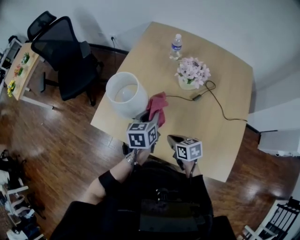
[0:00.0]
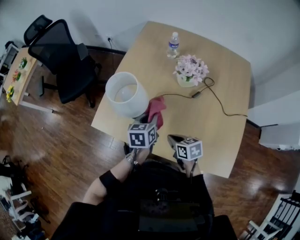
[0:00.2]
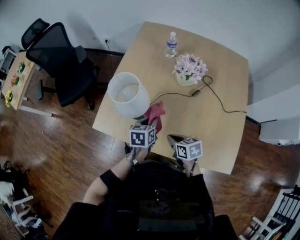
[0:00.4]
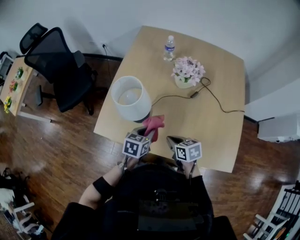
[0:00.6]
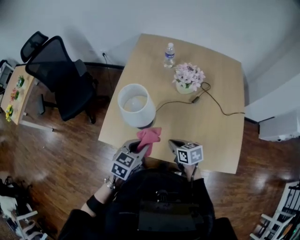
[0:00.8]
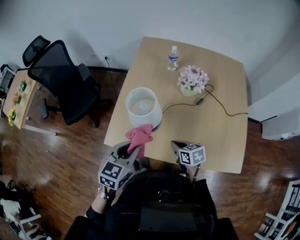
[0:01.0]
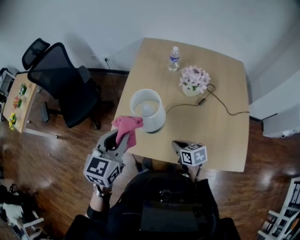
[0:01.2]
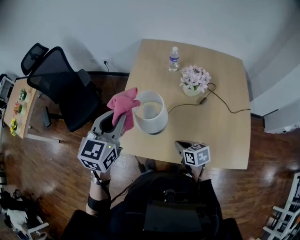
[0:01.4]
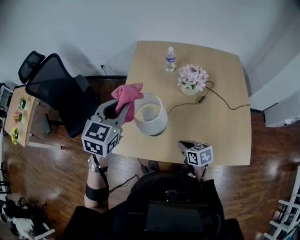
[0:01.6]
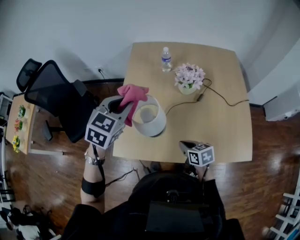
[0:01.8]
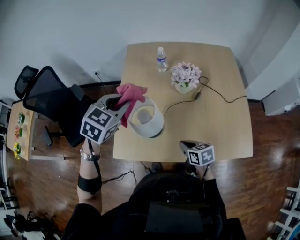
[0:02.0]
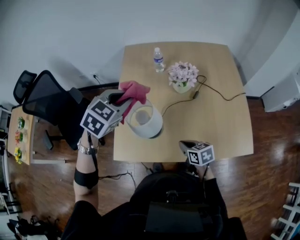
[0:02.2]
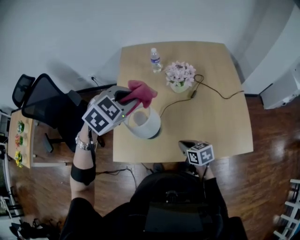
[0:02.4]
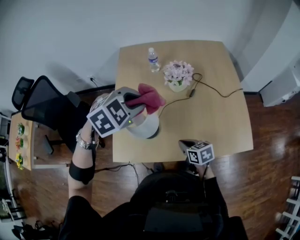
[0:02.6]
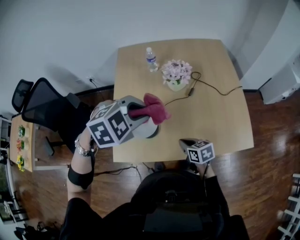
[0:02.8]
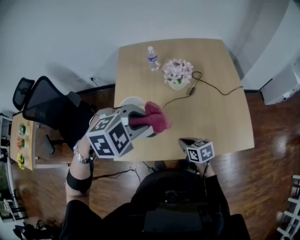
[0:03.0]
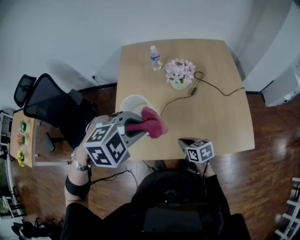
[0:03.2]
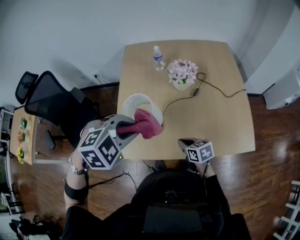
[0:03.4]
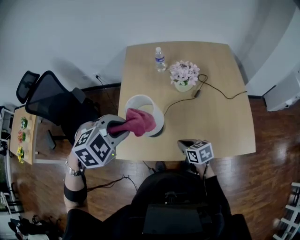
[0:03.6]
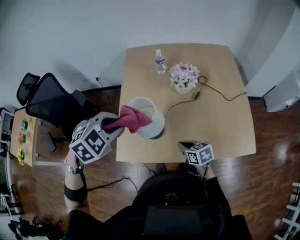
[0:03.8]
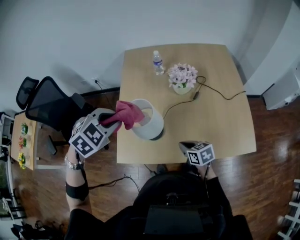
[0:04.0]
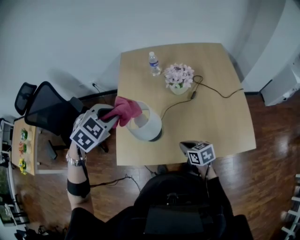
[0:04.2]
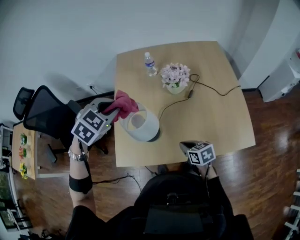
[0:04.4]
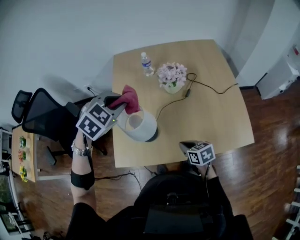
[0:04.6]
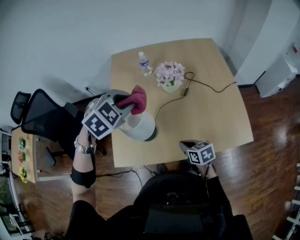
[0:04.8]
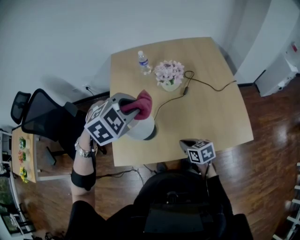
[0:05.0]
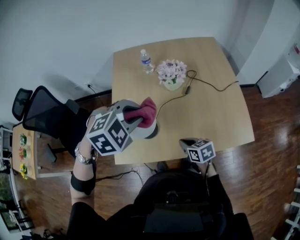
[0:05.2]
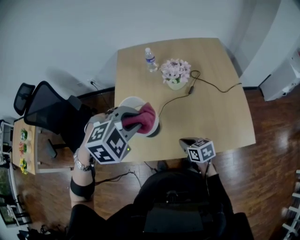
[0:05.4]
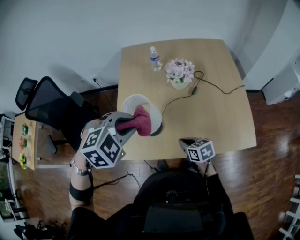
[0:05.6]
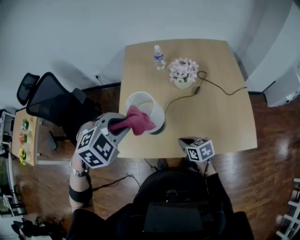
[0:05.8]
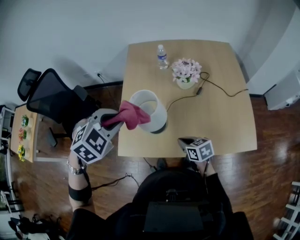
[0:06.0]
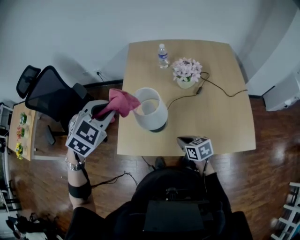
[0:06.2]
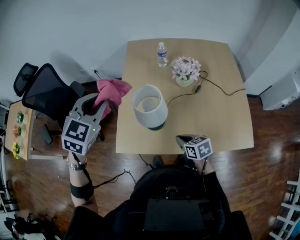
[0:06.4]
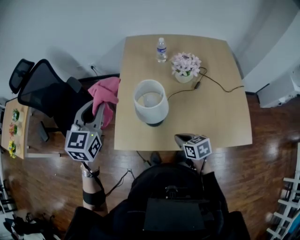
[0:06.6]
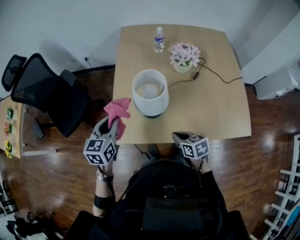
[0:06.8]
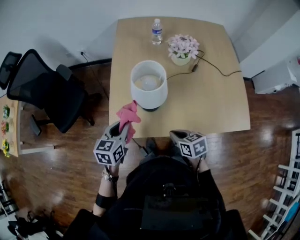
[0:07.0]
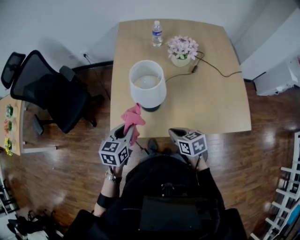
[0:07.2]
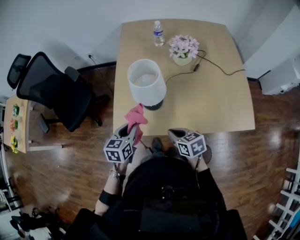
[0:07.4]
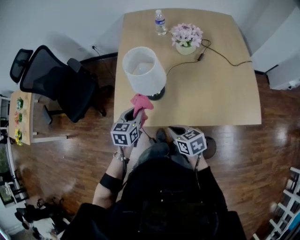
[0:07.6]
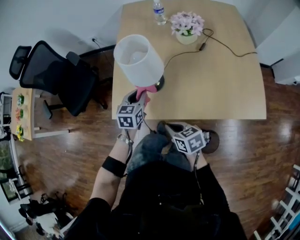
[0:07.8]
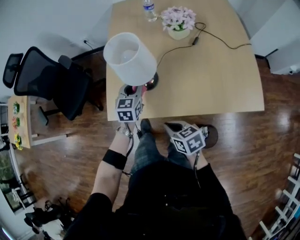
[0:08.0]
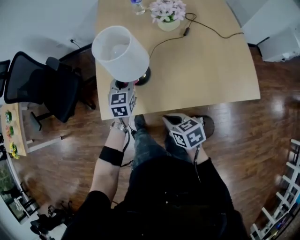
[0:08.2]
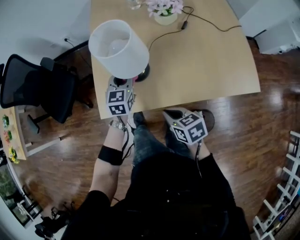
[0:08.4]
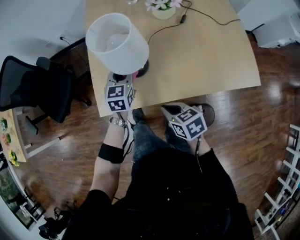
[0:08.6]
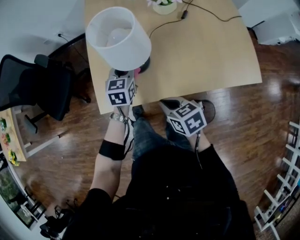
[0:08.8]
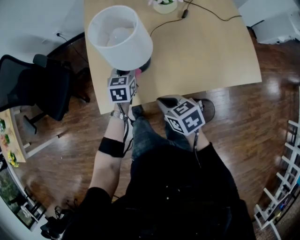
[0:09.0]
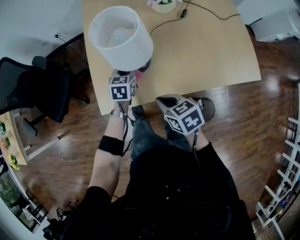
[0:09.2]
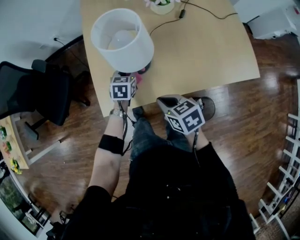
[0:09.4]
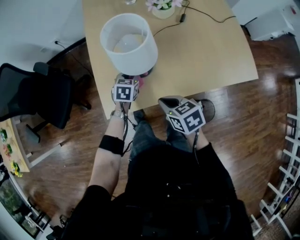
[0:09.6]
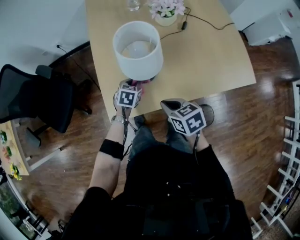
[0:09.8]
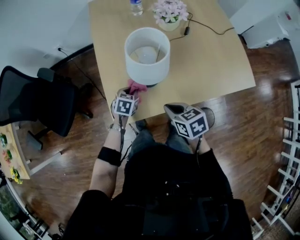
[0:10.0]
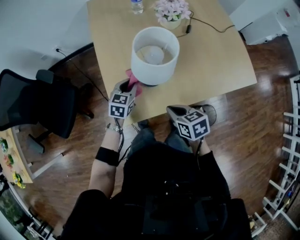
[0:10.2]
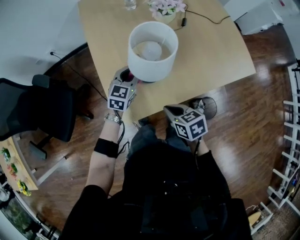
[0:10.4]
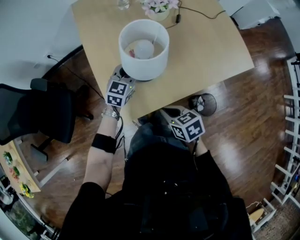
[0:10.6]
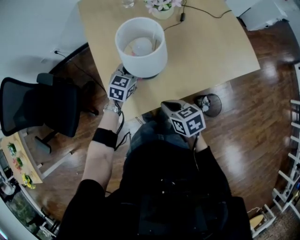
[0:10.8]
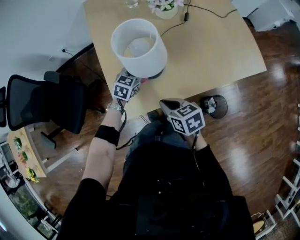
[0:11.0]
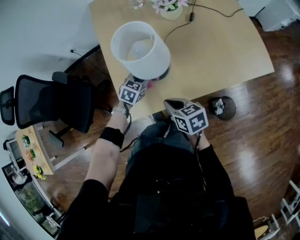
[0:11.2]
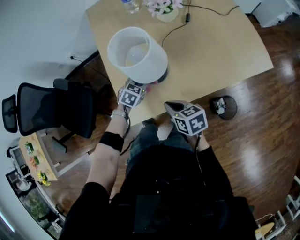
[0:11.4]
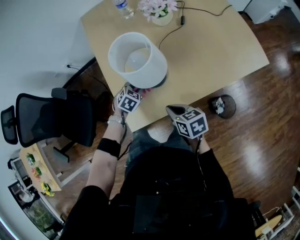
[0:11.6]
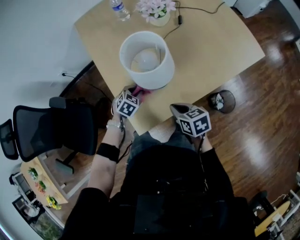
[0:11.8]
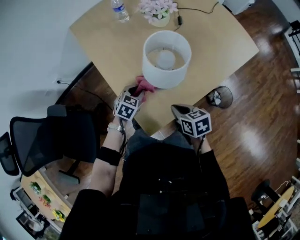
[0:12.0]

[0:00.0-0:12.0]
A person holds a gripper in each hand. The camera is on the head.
0:00.0 to 0:01.6: The left gripper moves upward and to the left, approximately 25 cm, and rotates around the line of its fingers by some 40 degrees, clockwise from behind. Meanwhile the right gripper travels to the left by approximately 5 cm.
0:01.6 to 0:03.0: The left gripper shifts about 15 cm to the right and backward, and tilts its fingers approximately 30 degrees downward.
0:03.0 to 0:04.4: The left gripper moves to the left and forward, roughly 15 cm, and turns by roughly 30 degrees.
0:04.4 to 0:06.0: The left gripper moves backward, approximately 10 cm, and reaches roughly 10 cm to the right, then returns.
0:06.0 to 0:07.6: The right gripper shifts some 10 cm backward and to the left, while the left gripper goes approximately 25 cm downward, and twists approximately 60 degrees counterclockwise, seen from behind.
0:07.6 to 0:09.0: The left gripper heads forward, downward and to the right, covering approximately 15 cm.
0:09.0 to 0:10.4: The left gripper rotates approximately 30 degrees, while the right gripper travels to the left by approximately 5 cm.
0:10.4 to 0:12.0: The right gripper travels to the left by some 5 cm, and swivels about 20 degrees; the left gripper heads downward and to the left, covering some 10 cm, and turns by roughly 30 degrees.

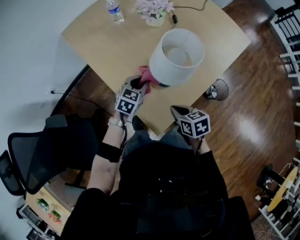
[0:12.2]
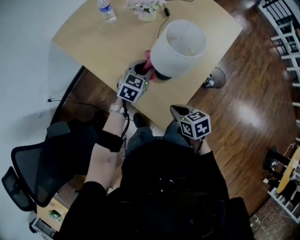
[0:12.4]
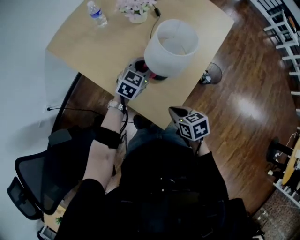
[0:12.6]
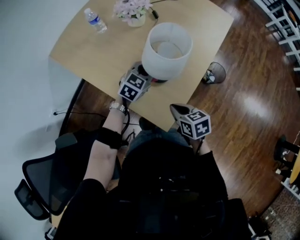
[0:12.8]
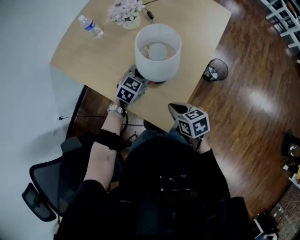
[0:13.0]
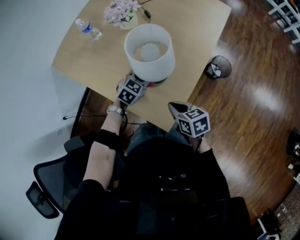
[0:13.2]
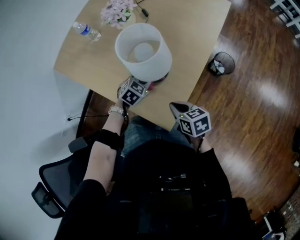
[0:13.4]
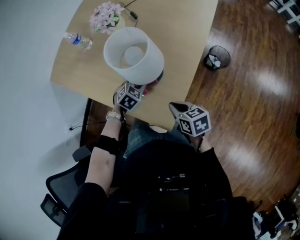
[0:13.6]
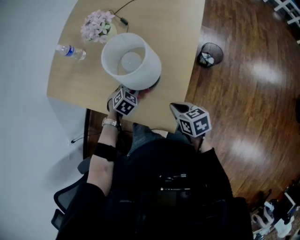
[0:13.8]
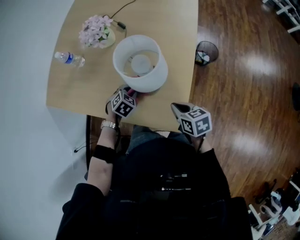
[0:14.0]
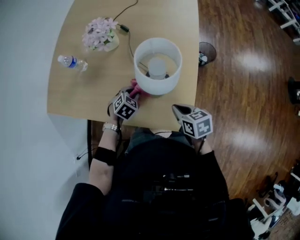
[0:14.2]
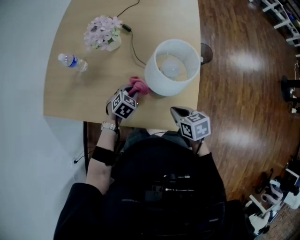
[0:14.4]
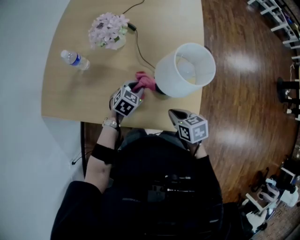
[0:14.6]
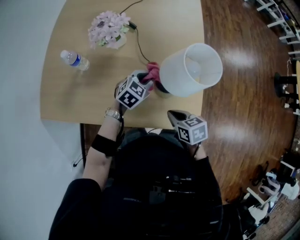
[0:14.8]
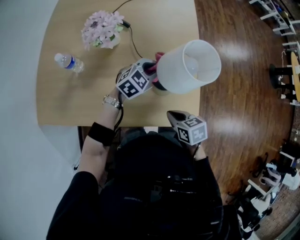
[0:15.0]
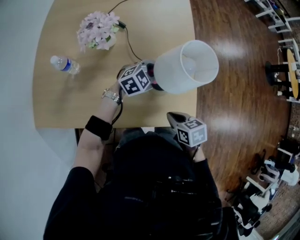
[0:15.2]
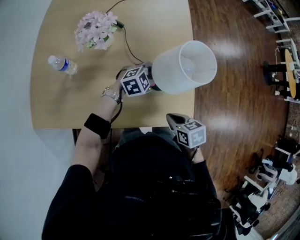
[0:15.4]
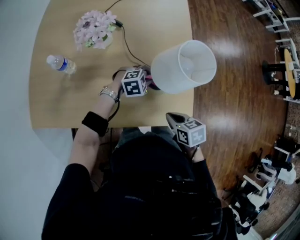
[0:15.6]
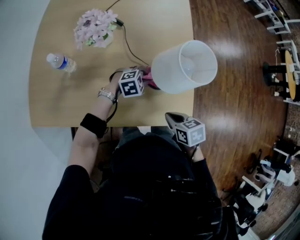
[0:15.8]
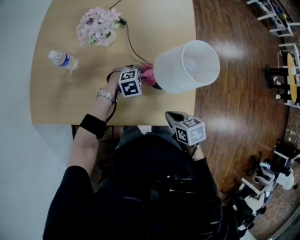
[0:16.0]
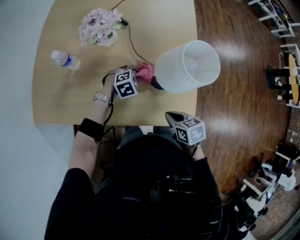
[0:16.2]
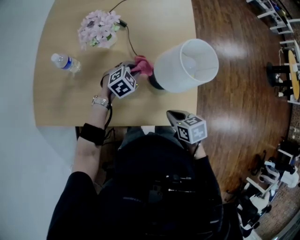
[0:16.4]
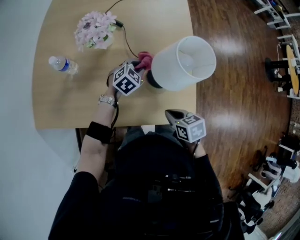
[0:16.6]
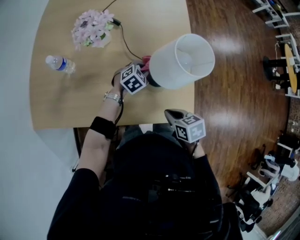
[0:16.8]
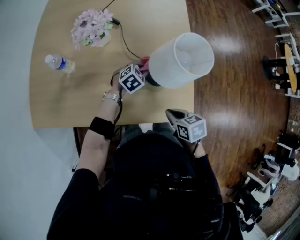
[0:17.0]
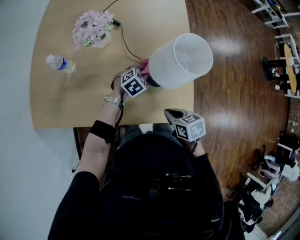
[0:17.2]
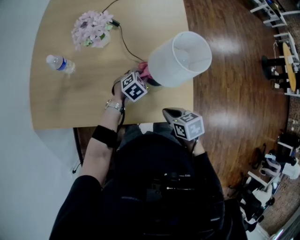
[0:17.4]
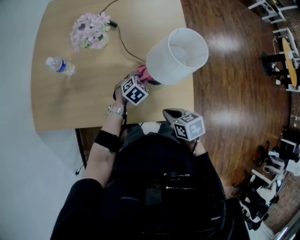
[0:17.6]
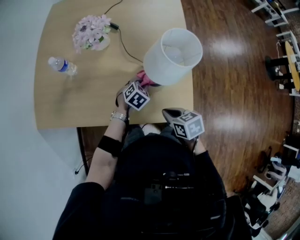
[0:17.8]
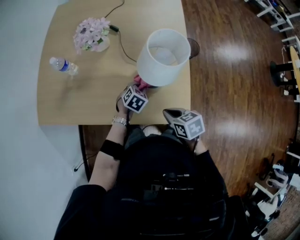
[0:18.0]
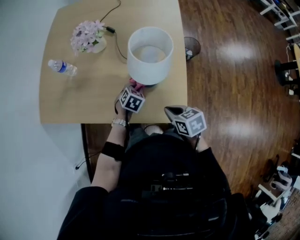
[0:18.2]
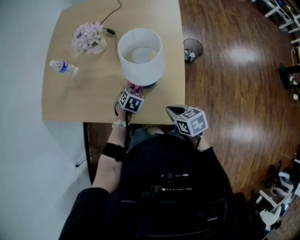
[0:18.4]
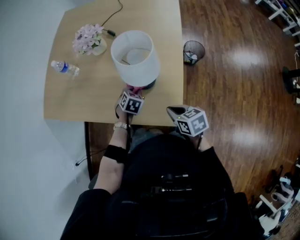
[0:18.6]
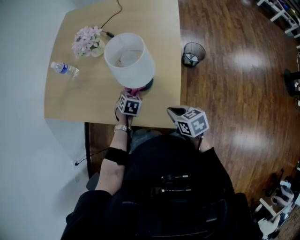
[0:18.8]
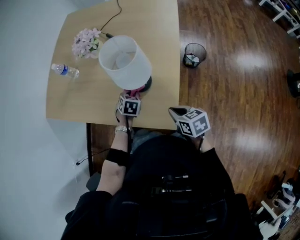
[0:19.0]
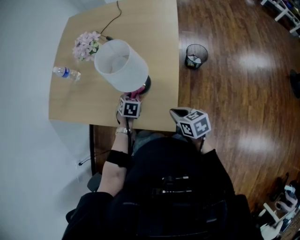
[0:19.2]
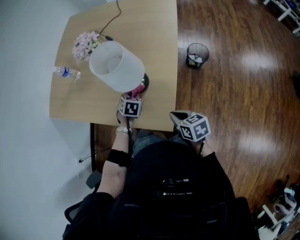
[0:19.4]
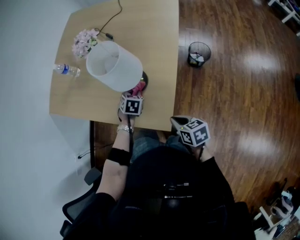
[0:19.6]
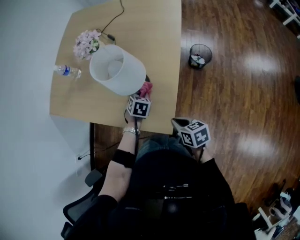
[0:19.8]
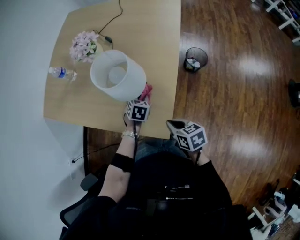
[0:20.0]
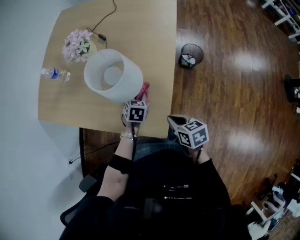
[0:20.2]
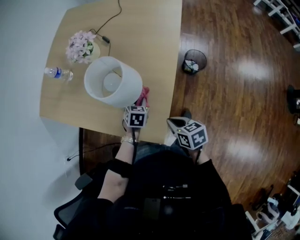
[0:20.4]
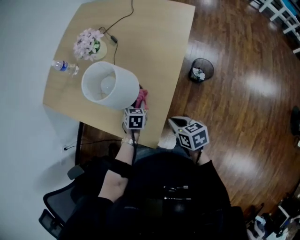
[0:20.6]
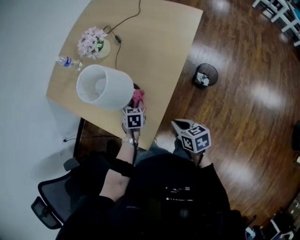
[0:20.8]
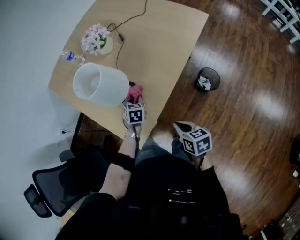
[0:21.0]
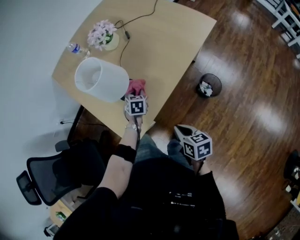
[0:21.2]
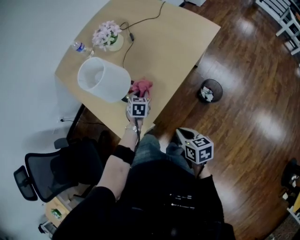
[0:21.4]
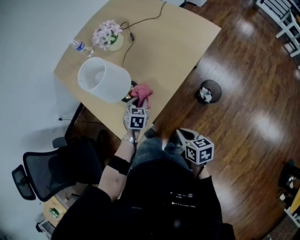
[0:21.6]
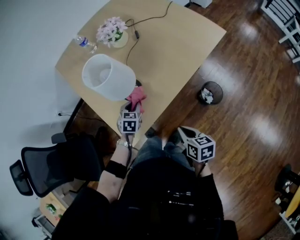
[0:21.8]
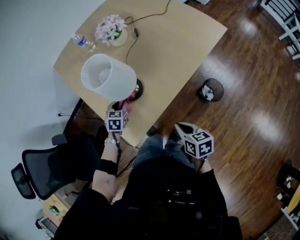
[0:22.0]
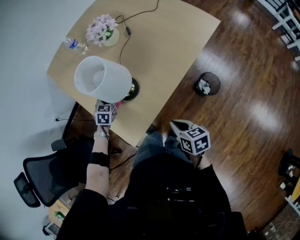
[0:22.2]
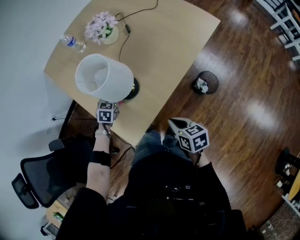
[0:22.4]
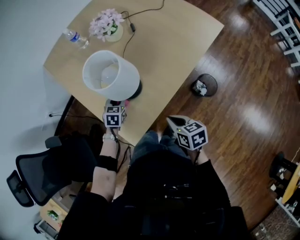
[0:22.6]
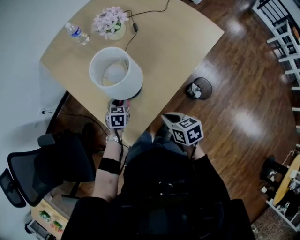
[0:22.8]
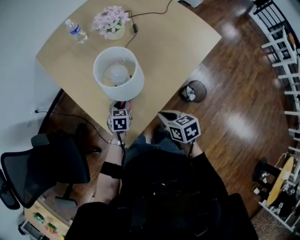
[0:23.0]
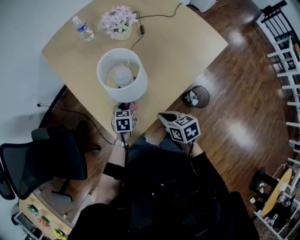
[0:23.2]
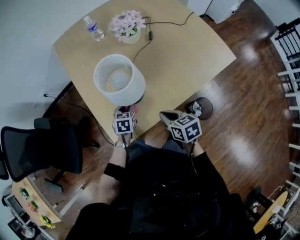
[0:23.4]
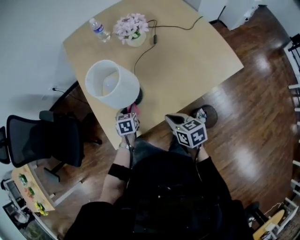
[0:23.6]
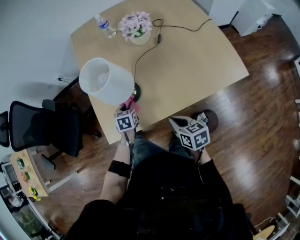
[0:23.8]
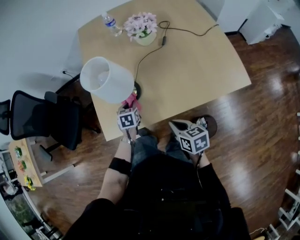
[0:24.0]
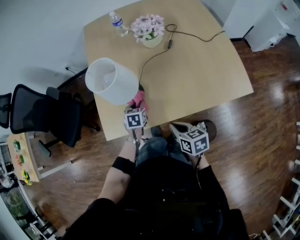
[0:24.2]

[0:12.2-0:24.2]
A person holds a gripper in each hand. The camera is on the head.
0:12.2 to 0:13.8: The left gripper moves downward, some 5 cm, and changes its angle by some 50 degrees, while the right gripper rotates roughly 30 degrees.
0:13.8 to 0:15.2: The left gripper shifts some 10 cm upward, and changes its angle by roughly 50 degrees; the right gripper moves approximately 15 cm, and rotates approximately 20 degrees.
0:15.2 to 0:16.6: The left gripper is displaced to the left and downward by about 10 cm, and swivels about 20 degrees.
0:16.6 to 0:18.2: The right gripper is displaced to the right by roughly 5 cm; the left gripper is displaced backward and downward by about 10 cm, and swivels about 30 degrees.
0:18.2 to 0:19.8: The left gripper travels to the right by some 5 cm, and swivels approximately 20 degrees, while the right gripper shifts about 10 cm to the right and backward.
0:19.8 to 0:21.2: The left gripper shifts by some 10 cm, and turns by some 40 degrees, while the right gripper shifts by roughly 20 cm.
0:21.2 to 0:22.6: The right gripper heads forward, covering about 5 cm. The left gripper travels to the left by roughly 10 cm.
0:22.6 to 0:24.2: The left gripper shifts by roughly 10 cm, and turns by some 50 degrees. Meanwhile the right gripper shifts by some 15 cm, and changes its angle by roughly 30 degrees.
